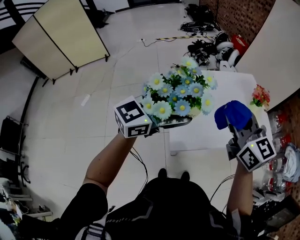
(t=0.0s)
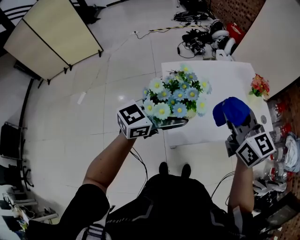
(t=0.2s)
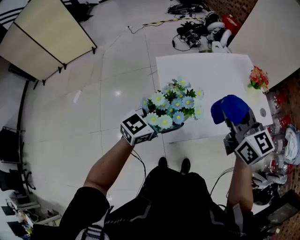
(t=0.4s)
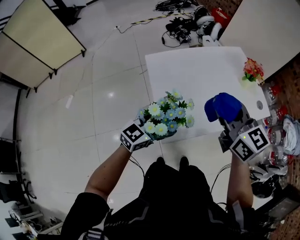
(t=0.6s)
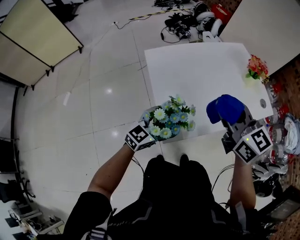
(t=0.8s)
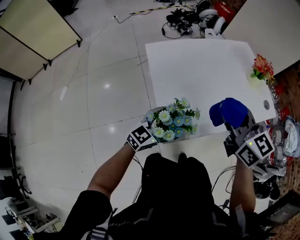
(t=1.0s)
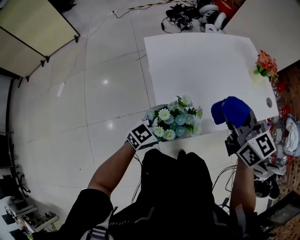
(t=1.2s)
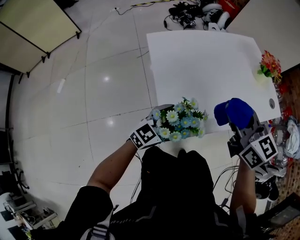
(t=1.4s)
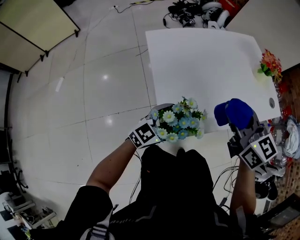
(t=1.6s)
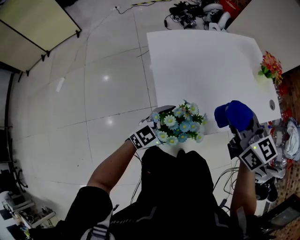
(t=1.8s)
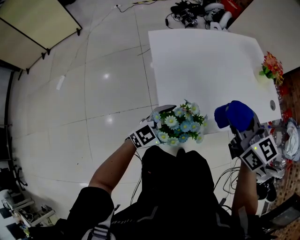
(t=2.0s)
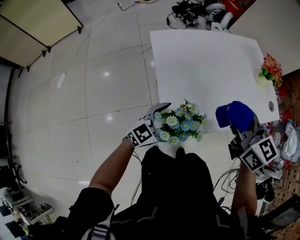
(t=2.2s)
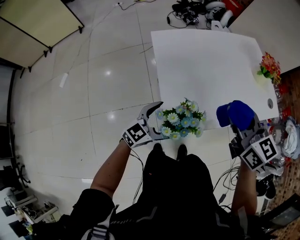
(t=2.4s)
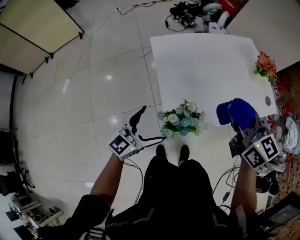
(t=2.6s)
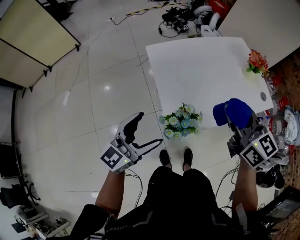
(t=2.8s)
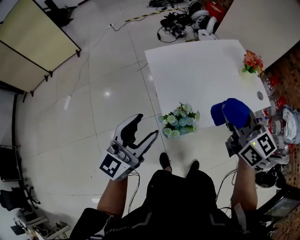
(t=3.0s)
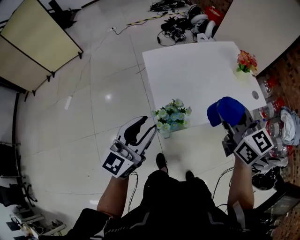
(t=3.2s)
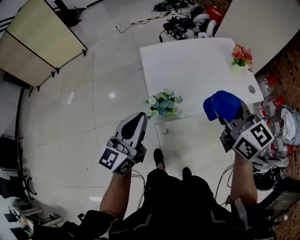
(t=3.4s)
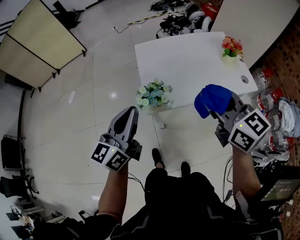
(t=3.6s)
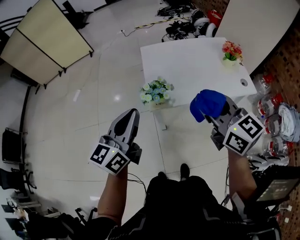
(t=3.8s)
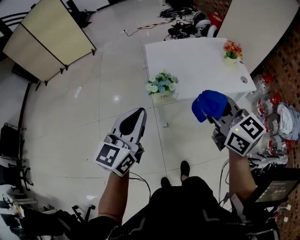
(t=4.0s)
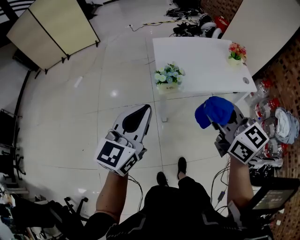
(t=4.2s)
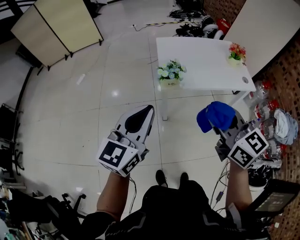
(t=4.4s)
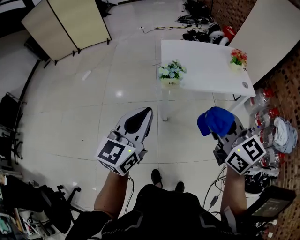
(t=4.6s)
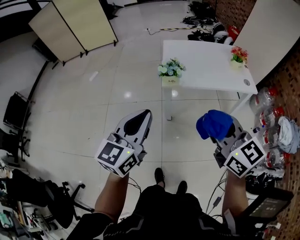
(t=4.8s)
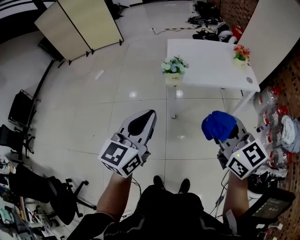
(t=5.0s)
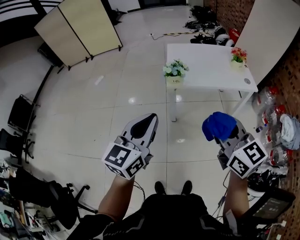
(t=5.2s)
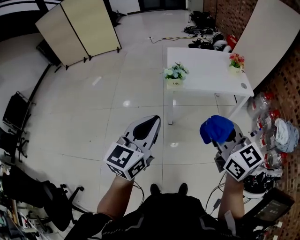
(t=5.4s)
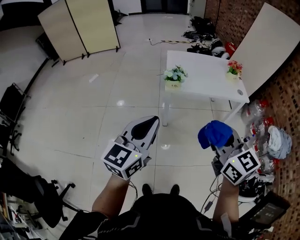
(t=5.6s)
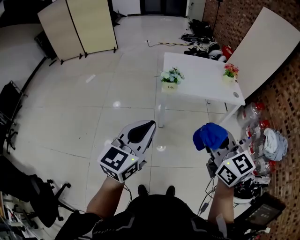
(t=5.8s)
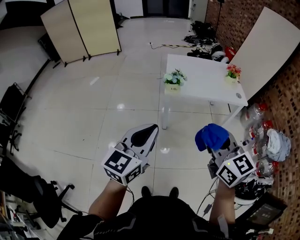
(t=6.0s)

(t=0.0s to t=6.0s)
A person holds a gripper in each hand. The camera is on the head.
t=0.0s - t=1.6s: The right gripper heads downward, covering some 20 cm. Meanwhile the left gripper is displaced downward by about 40 cm.
t=1.6s - t=3.0s: The right gripper goes about 15 cm upward; the left gripper goes about 30 cm upward and to the left, rotates approximately 30 degrees, and closes.
t=3.0s - t=4.4s: The grippers both shift backward by about 35 cm. The left gripper closes up.
t=4.4s - t=6.0s: Both grippers move backward, some 20 cm.

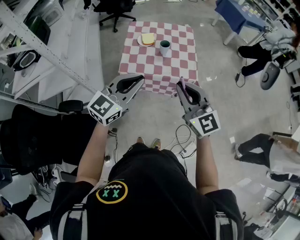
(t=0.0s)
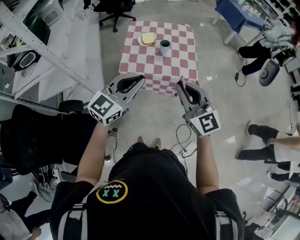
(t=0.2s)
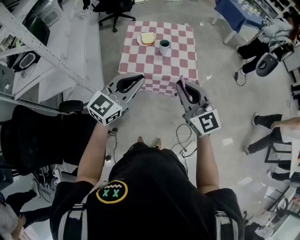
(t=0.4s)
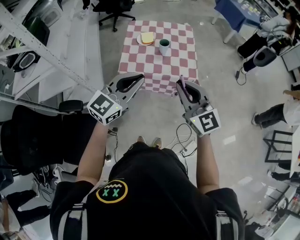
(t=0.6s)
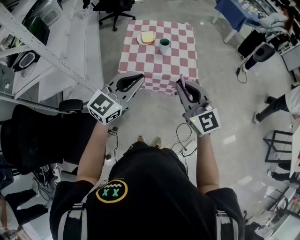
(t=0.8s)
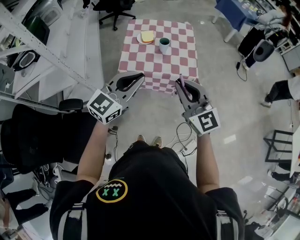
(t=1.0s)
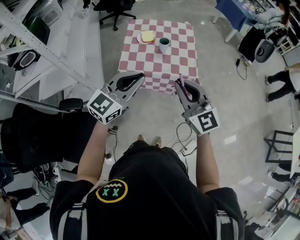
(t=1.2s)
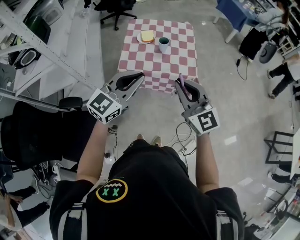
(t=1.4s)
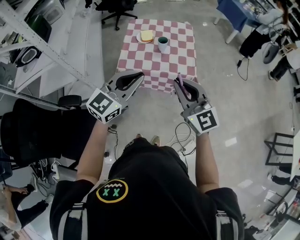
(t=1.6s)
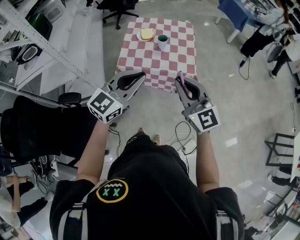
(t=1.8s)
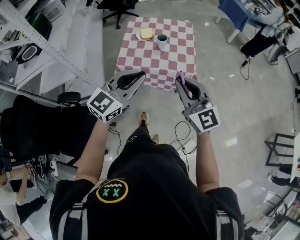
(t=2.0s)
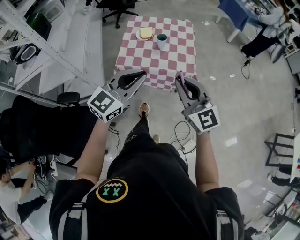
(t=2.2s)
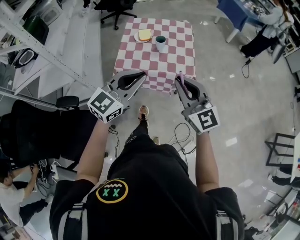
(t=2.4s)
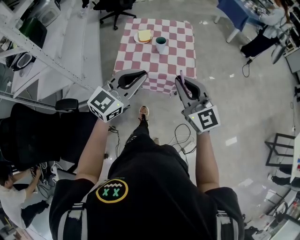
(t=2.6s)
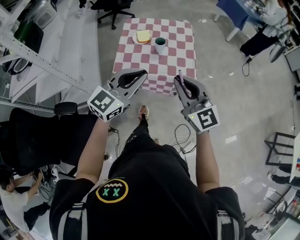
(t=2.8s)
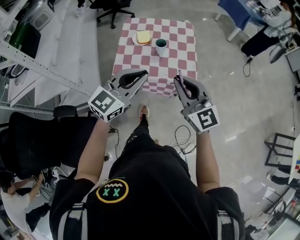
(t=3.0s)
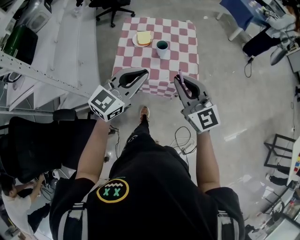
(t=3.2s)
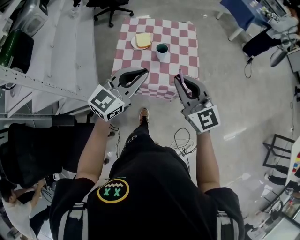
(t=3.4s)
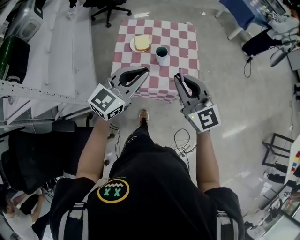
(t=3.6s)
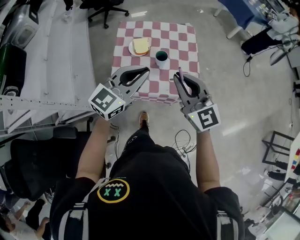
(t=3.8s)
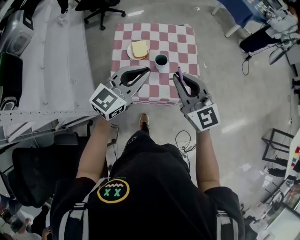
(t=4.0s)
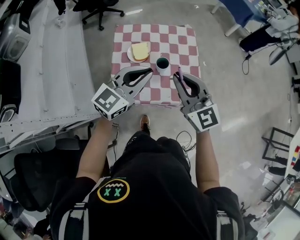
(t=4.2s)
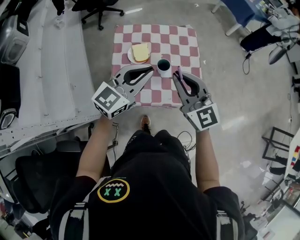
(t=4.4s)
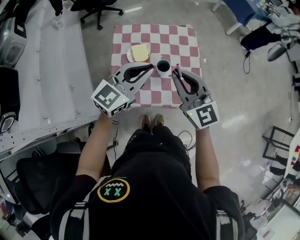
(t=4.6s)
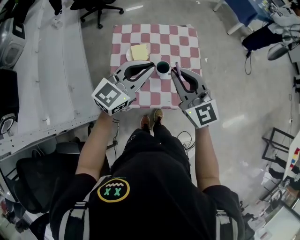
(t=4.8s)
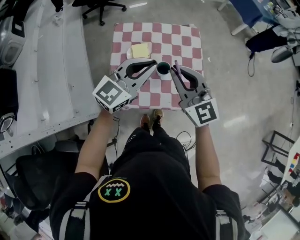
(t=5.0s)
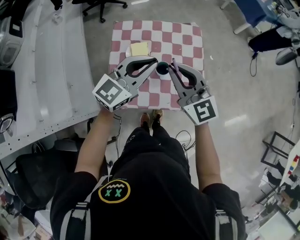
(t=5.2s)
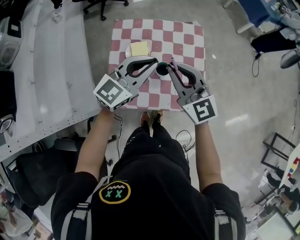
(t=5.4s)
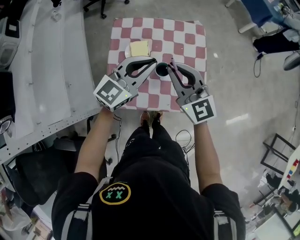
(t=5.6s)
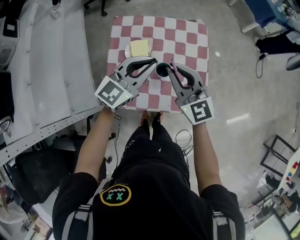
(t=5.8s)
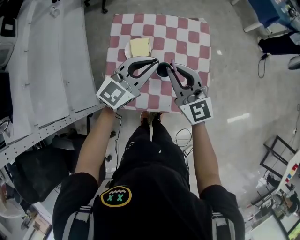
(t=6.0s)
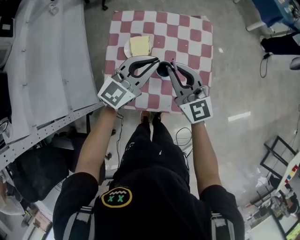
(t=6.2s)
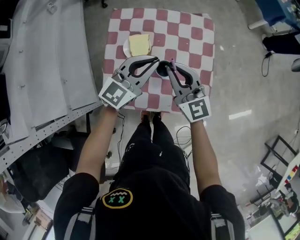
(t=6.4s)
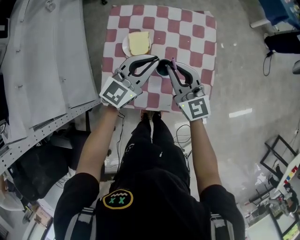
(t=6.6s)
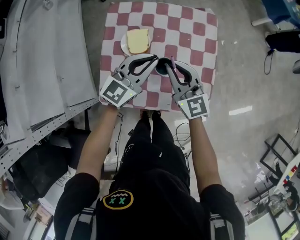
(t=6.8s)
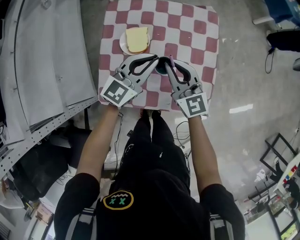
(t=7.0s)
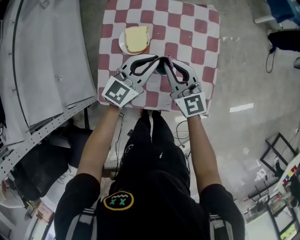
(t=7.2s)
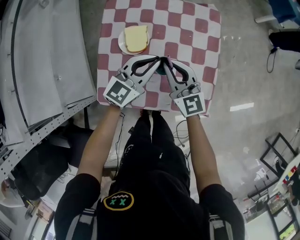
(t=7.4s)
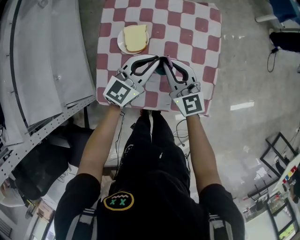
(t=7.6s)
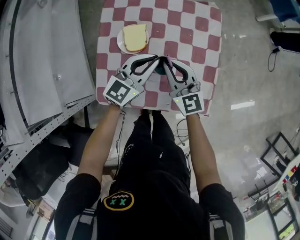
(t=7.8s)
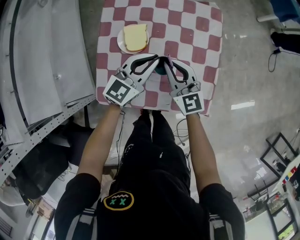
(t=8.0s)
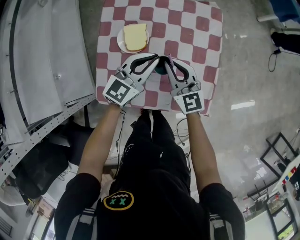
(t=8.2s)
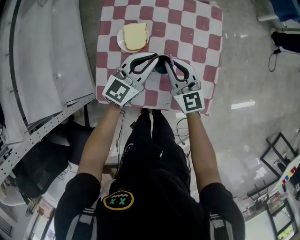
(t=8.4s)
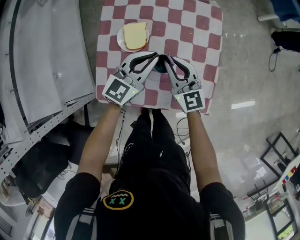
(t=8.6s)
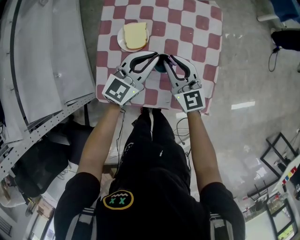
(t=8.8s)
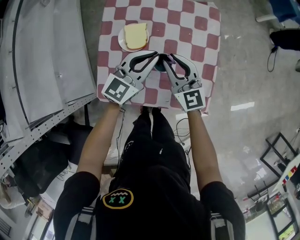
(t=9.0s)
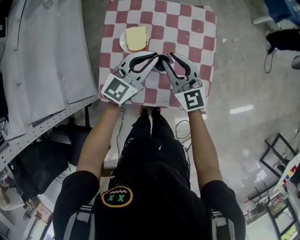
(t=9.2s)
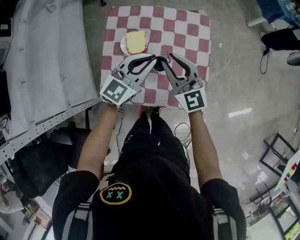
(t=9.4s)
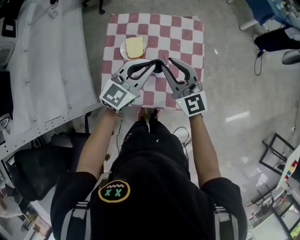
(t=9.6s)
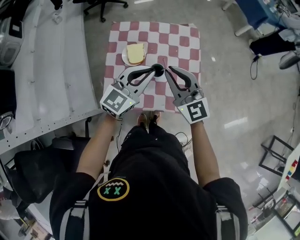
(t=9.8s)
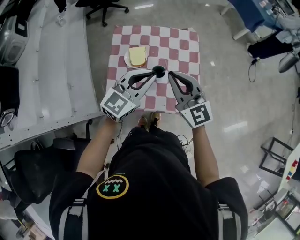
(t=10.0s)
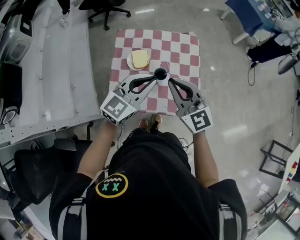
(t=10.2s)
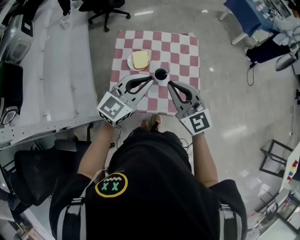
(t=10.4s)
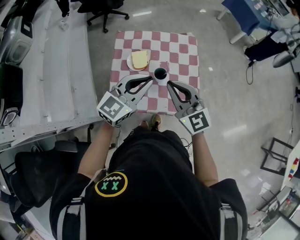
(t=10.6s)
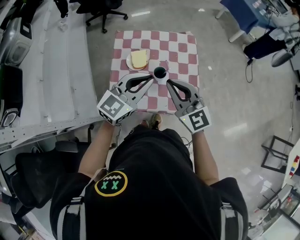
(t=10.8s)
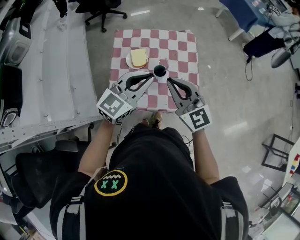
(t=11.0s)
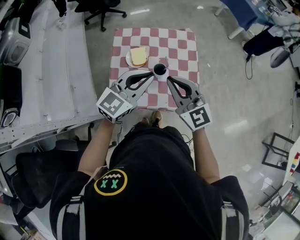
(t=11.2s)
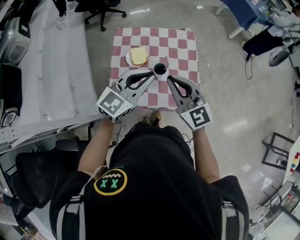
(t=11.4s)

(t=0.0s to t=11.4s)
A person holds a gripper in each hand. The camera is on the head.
t=0.0s - t=1.4s: The grippers move only a little.
t=1.4s - t=2.8s: Both grippers travel together forward, some 5 cm.
t=2.8s - t=4.2s: Both grippers travel together forward, about 25 cm.
t=4.2s - t=5.6s: Both grippers travel together forward and downward, roughly 15 cm.
t=5.6s - t=7.2s: Both grippers travel together downward, roughly 15 cm.
t=7.2s - t=8.6s: The grippers move only a little.
t=8.6s - t=10.0s: Both grippers move upward and backward, roughly 25 cm.
t=10.0s - t=11.4s: The left gripper changes place by approximately 5 cm; the right gripper shifts about 5 cm backward.

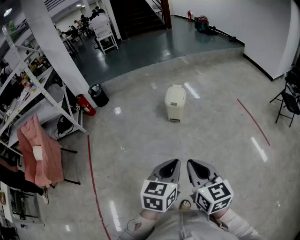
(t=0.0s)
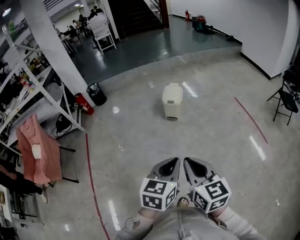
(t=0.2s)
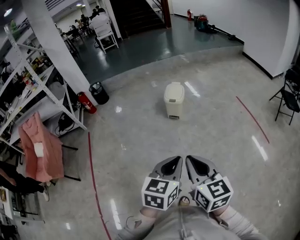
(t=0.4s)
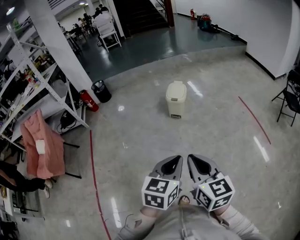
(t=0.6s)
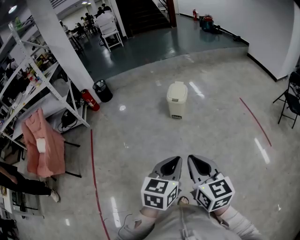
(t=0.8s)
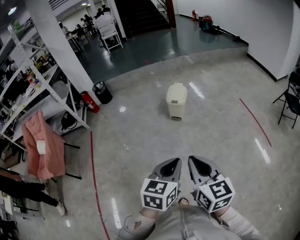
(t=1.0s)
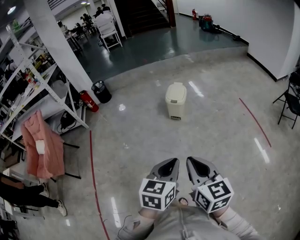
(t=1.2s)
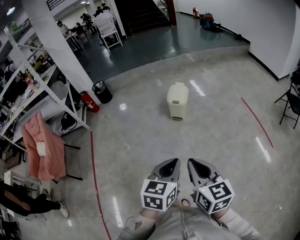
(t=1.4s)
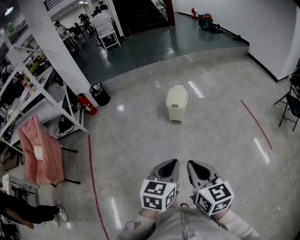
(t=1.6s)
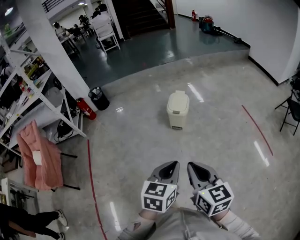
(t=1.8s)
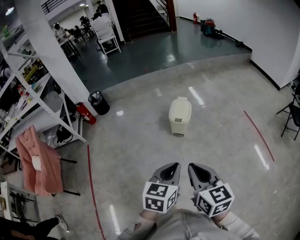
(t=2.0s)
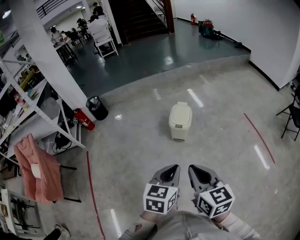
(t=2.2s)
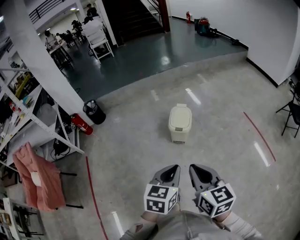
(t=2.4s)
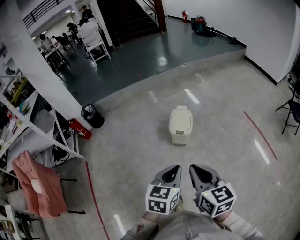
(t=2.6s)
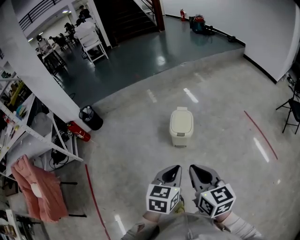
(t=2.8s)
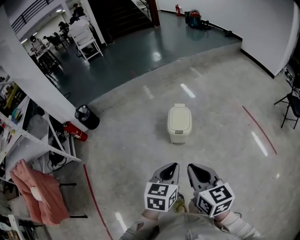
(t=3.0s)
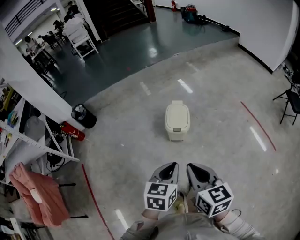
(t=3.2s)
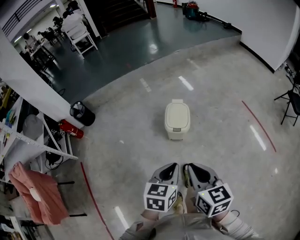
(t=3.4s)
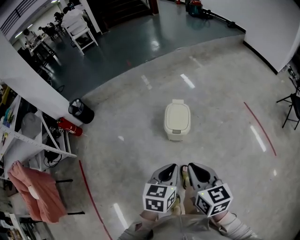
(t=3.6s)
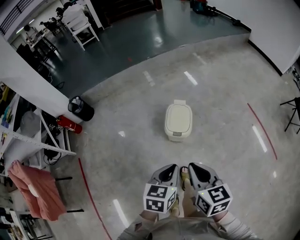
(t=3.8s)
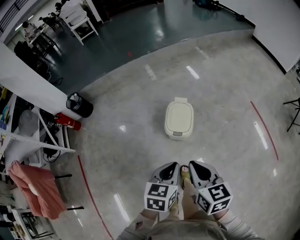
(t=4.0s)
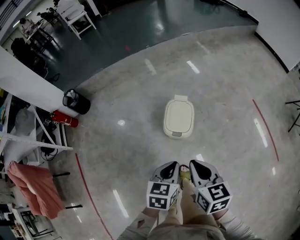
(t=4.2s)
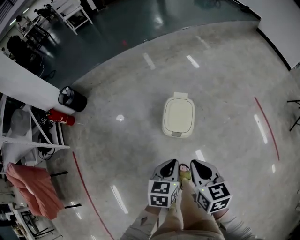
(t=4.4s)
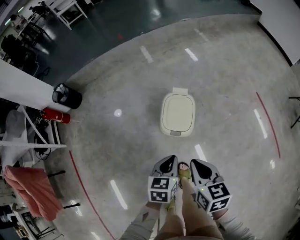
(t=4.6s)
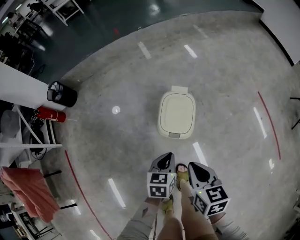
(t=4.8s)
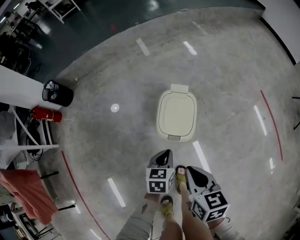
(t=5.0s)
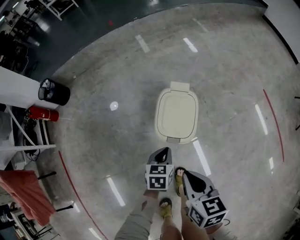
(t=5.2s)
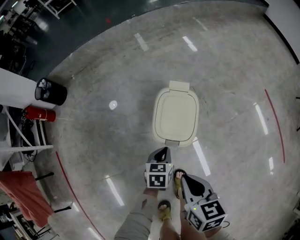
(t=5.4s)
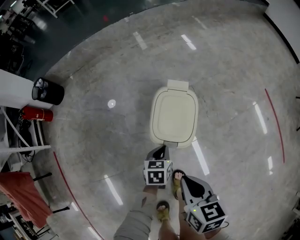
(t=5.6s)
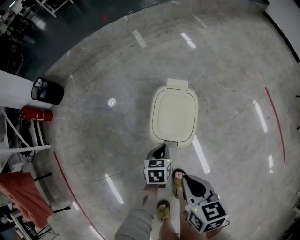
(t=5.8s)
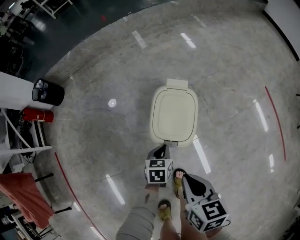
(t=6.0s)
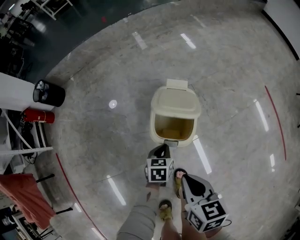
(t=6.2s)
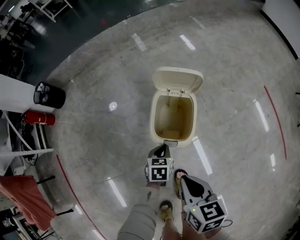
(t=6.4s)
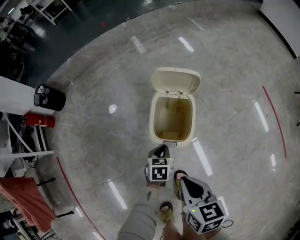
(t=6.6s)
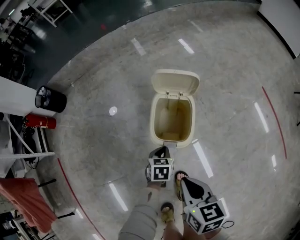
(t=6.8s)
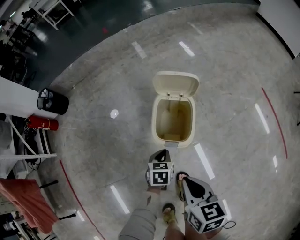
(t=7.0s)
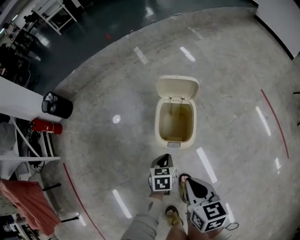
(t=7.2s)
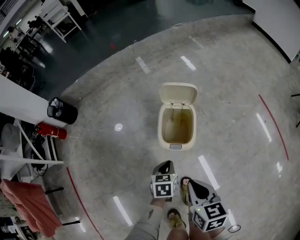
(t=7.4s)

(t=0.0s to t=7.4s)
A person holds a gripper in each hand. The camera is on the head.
t=0.0s - t=1.4s: There are only small adjustments of the grippers.
t=1.4s - t=3.0s: Both grippers travel together forward, roughly 35 cm.
t=3.0s - t=4.4s: Both grippers move forward and downward, some 30 cm.
t=4.4s - t=6.0s: The left gripper heads downward and forward, covering approximately 35 cm, while the right gripper goes approximately 20 cm downward.
t=6.0s - t=7.4s: Both grippers travel together upward and backward, approximately 10 cm.
